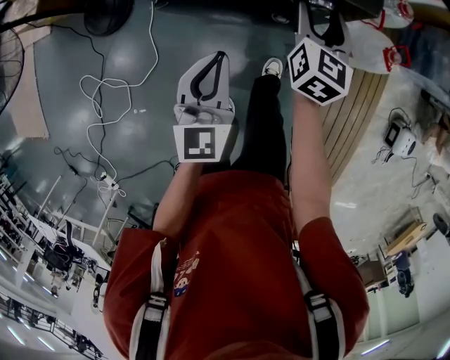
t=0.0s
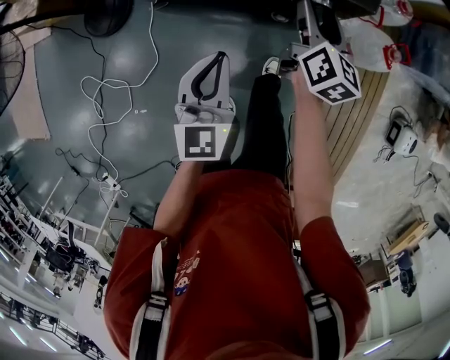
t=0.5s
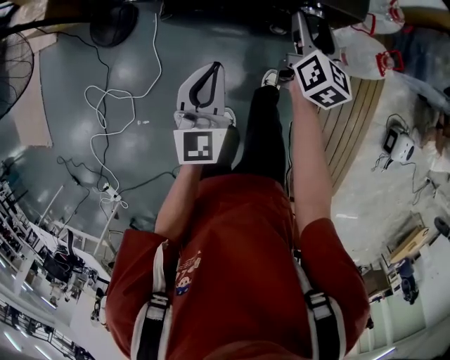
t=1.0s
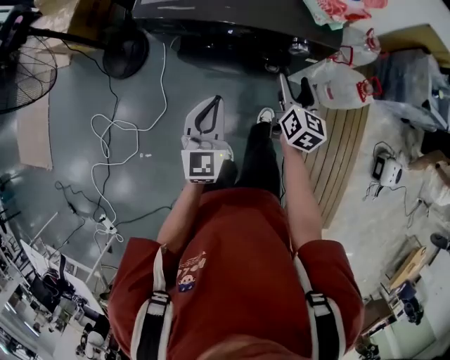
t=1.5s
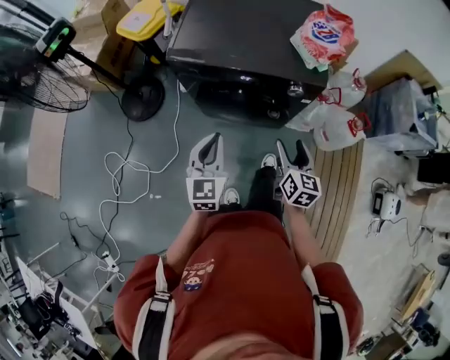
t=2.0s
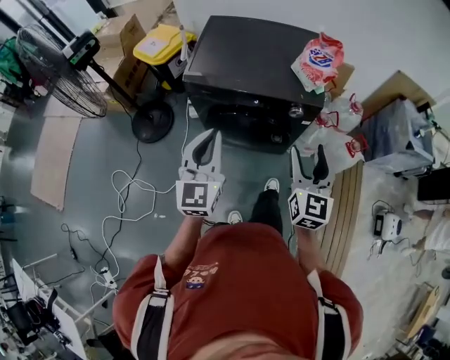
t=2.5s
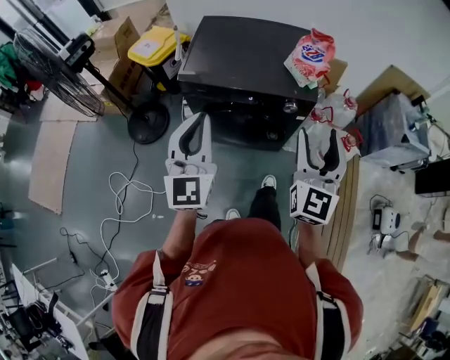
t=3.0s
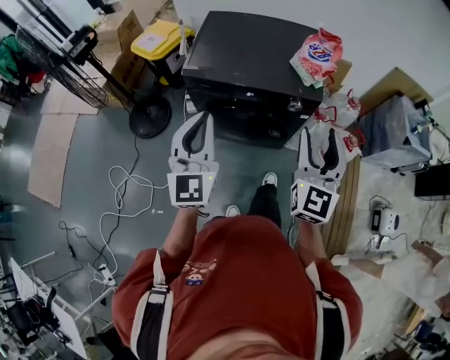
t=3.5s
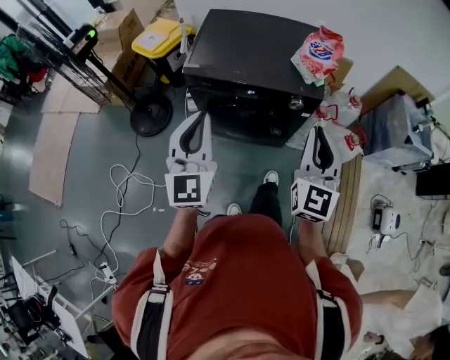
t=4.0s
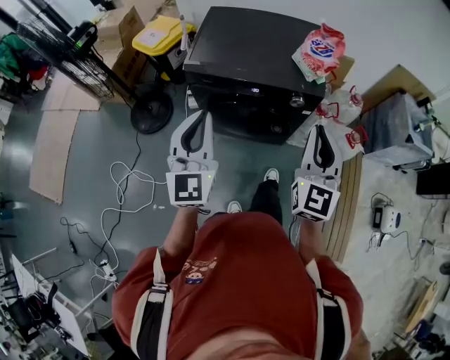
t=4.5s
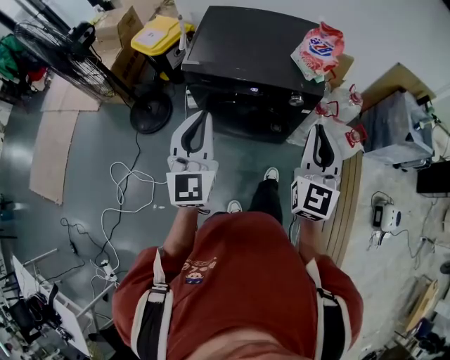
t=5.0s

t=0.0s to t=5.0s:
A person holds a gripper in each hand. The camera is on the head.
t=0.0s to t=2.5s: Both grippers travel together upward and backward, roughly 40 cm. The right gripper swivels approximately 20 degrees.
t=2.5s to t=5.0s: The right gripper shifts roughly 5 cm upward, and closes up.

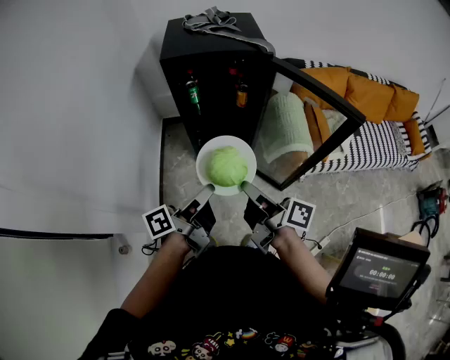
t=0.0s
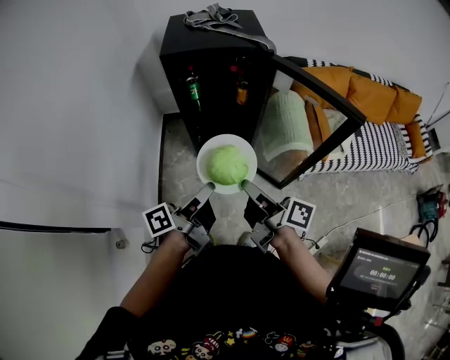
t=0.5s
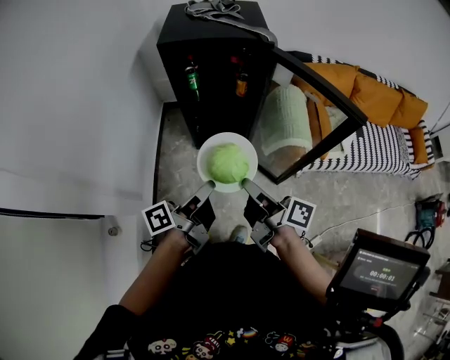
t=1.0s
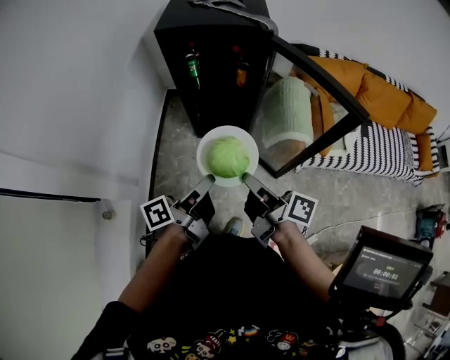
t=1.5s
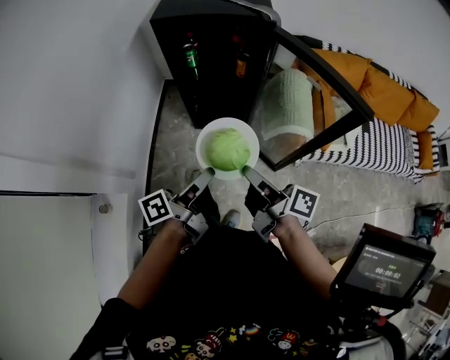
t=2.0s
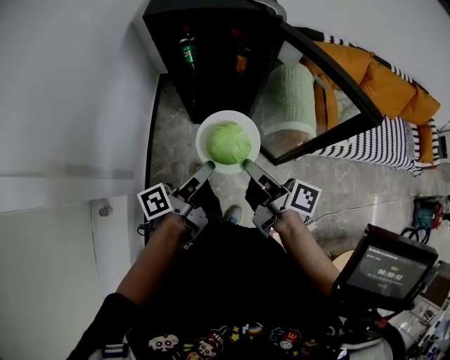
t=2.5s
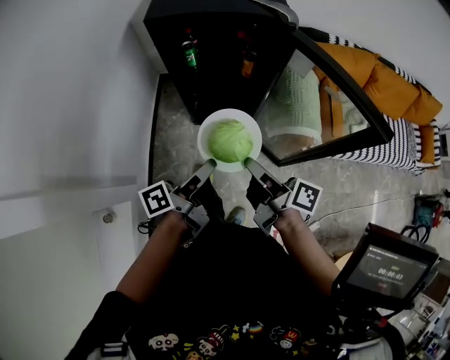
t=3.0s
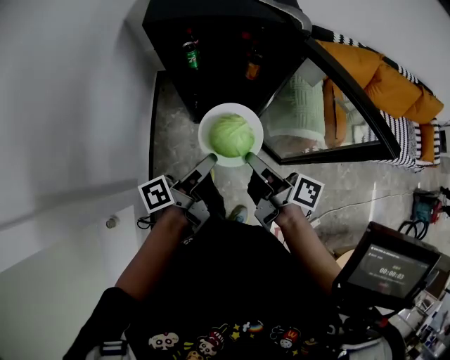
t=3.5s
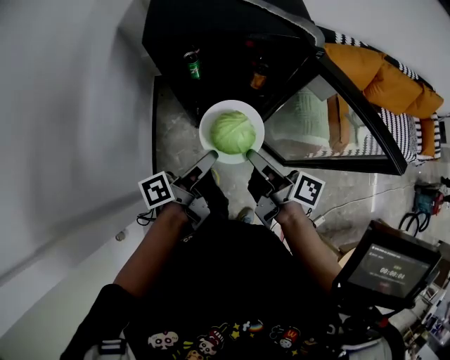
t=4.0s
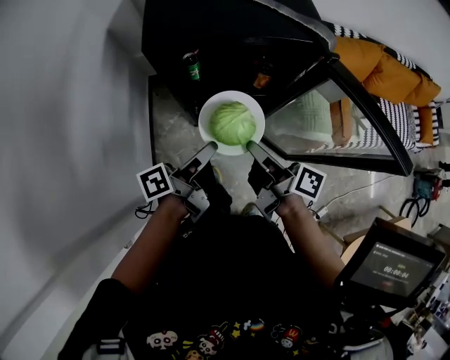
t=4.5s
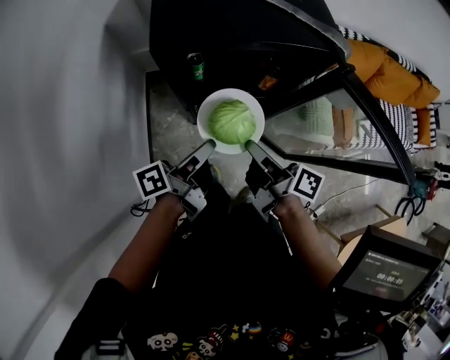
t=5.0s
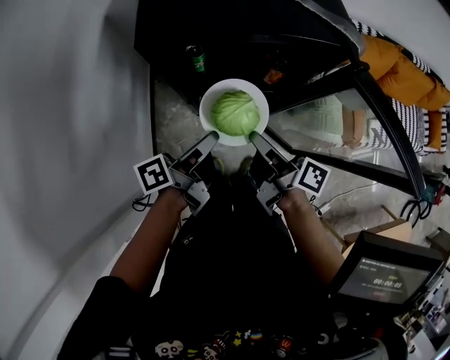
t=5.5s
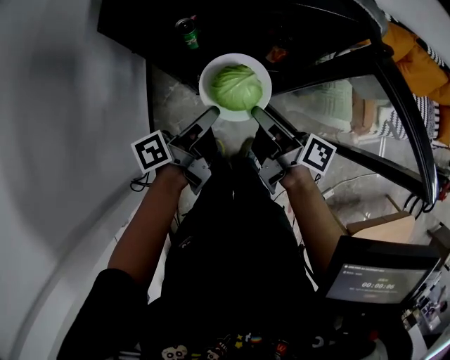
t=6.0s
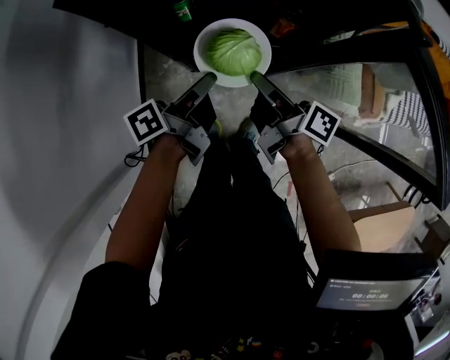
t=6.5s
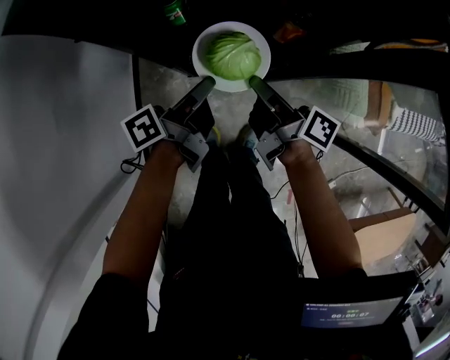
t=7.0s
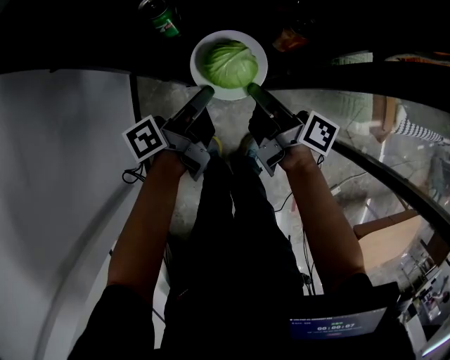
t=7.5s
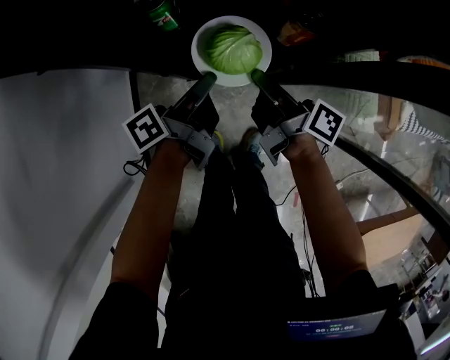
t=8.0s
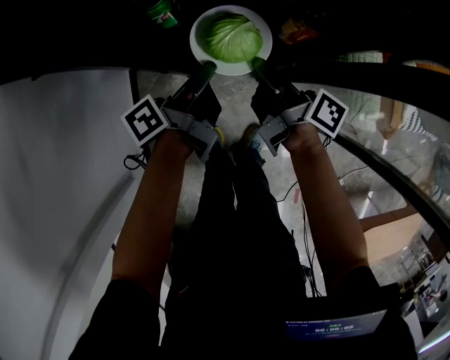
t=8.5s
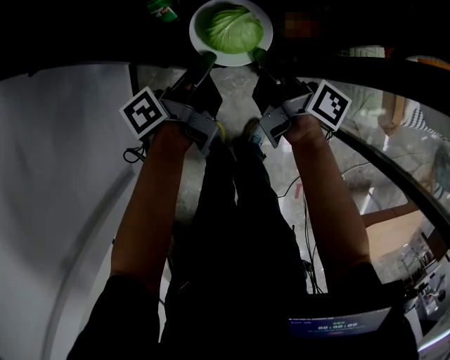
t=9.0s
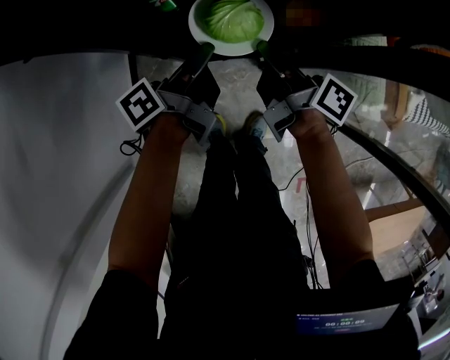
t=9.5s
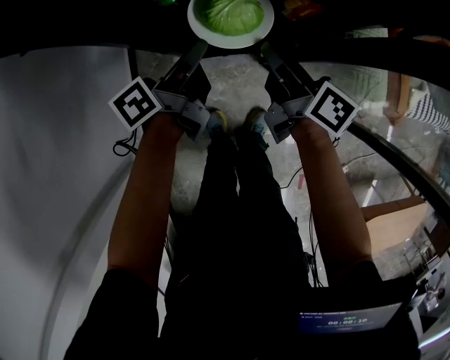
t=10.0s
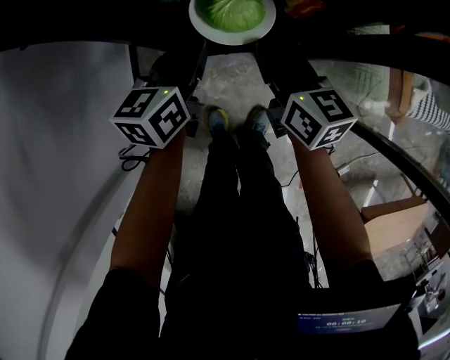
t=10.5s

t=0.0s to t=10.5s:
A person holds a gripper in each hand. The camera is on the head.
t=0.0s to t=2.0s: The right gripper shifts by some 10 cm.
t=8.5s to t=10.5s: The right gripper rolls counterclockwise, seen from behind, by about 60 degrees.

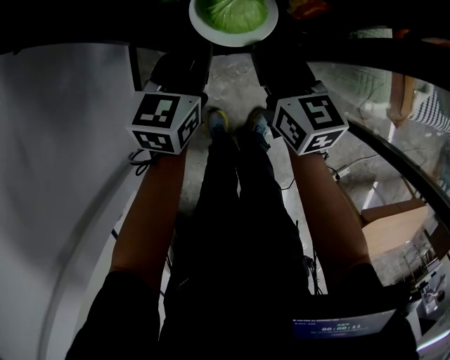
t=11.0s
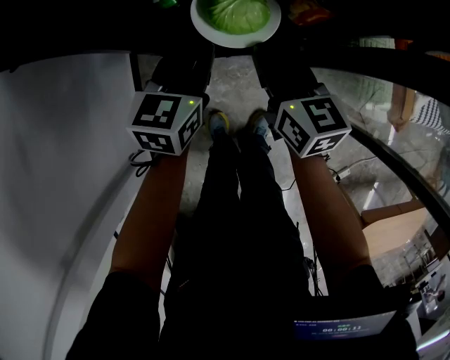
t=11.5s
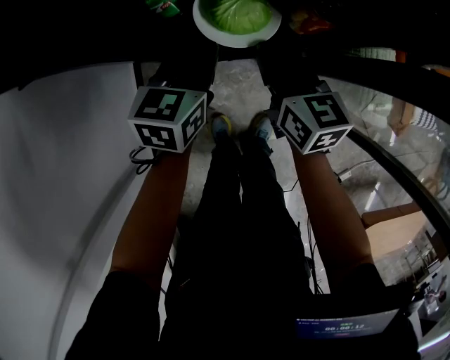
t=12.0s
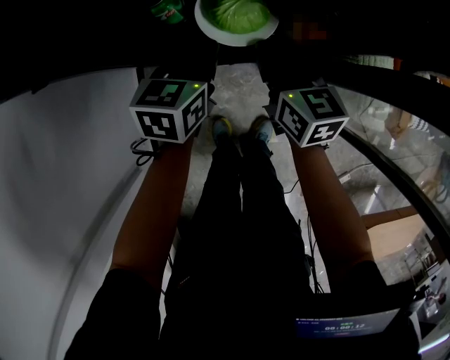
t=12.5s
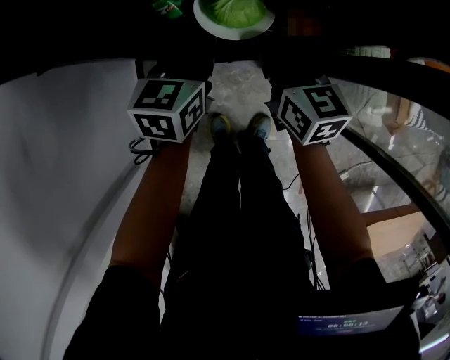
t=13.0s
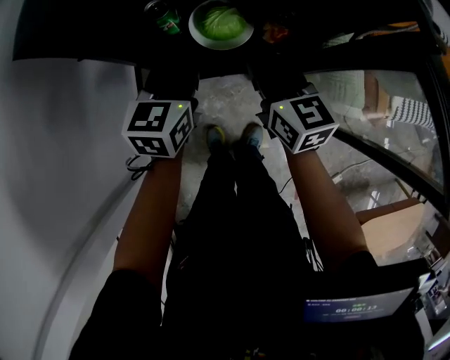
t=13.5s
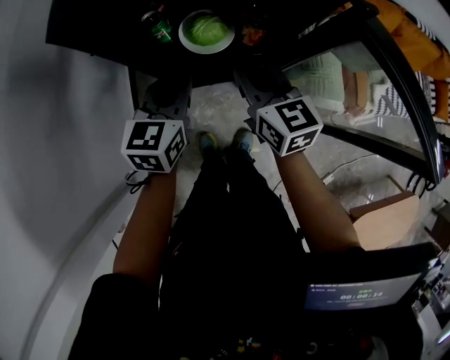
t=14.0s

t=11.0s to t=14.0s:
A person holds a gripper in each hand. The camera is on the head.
t=11.0s to t=12.5s: The right gripper moves about 5 cm.
t=12.5s to t=14.0s: The right gripper heads upward, covering roughly 15 cm.

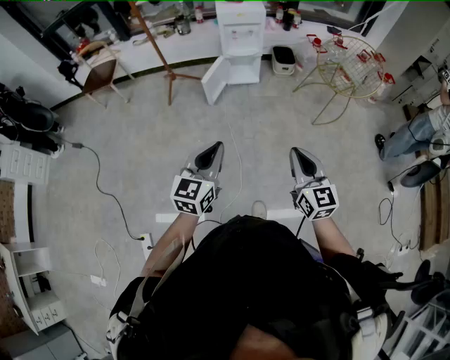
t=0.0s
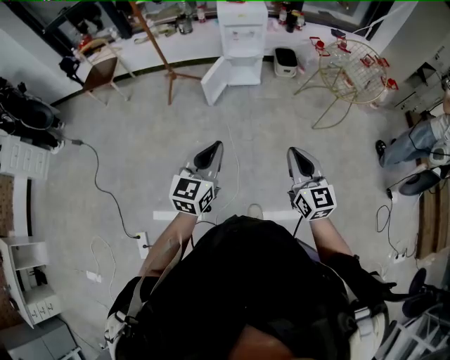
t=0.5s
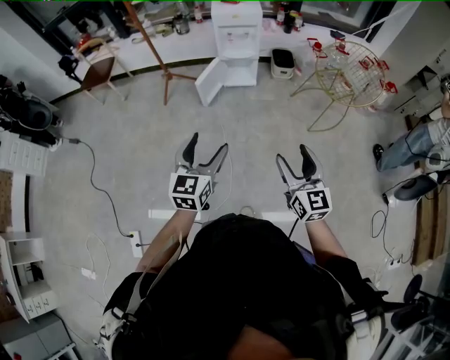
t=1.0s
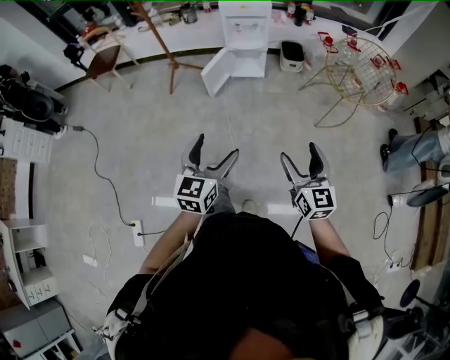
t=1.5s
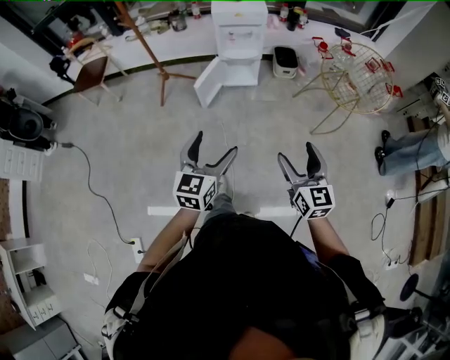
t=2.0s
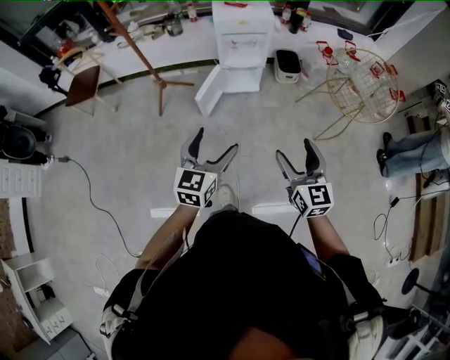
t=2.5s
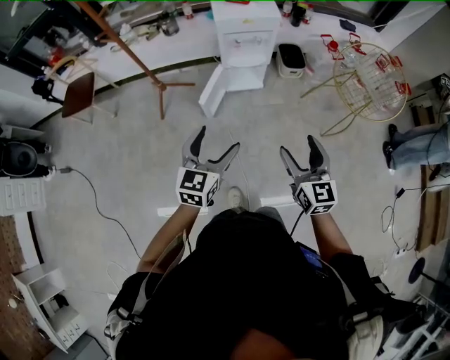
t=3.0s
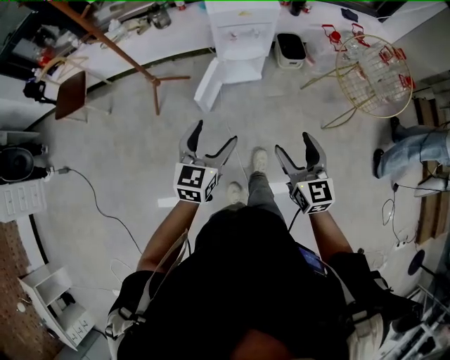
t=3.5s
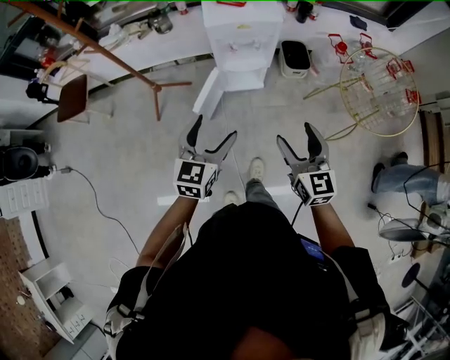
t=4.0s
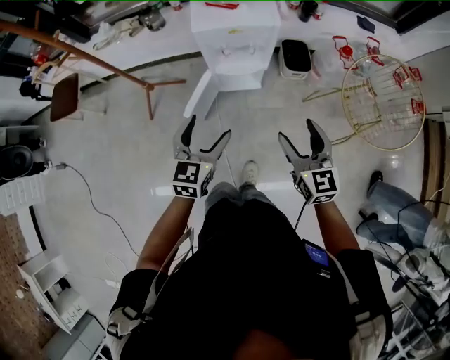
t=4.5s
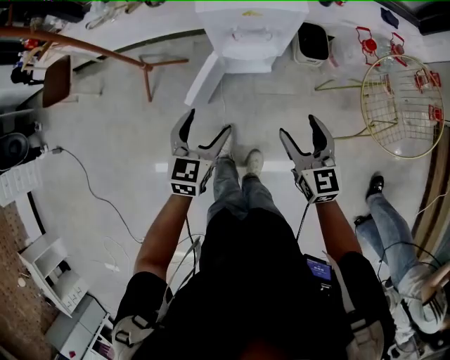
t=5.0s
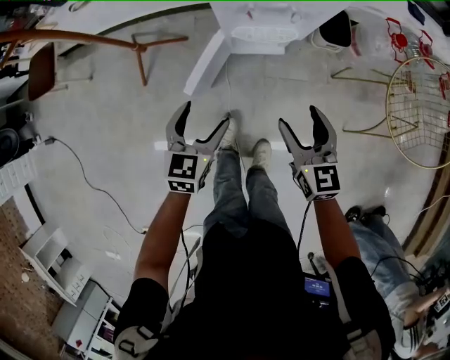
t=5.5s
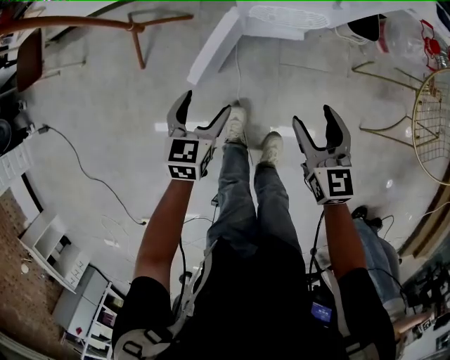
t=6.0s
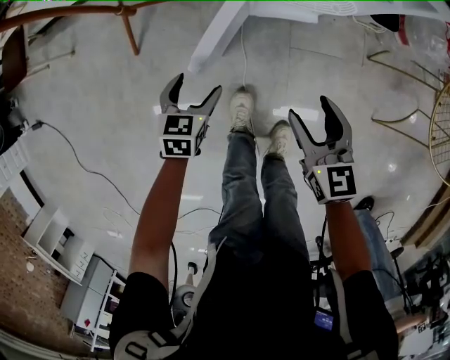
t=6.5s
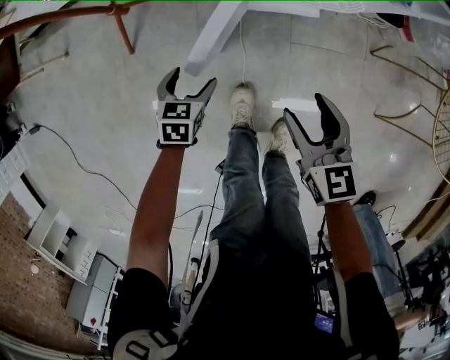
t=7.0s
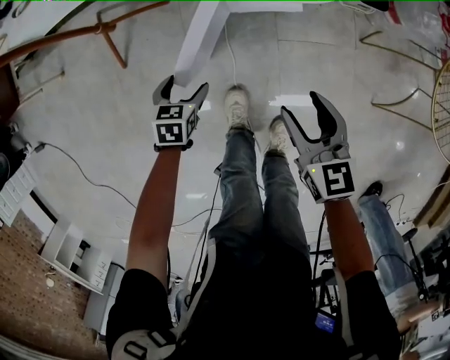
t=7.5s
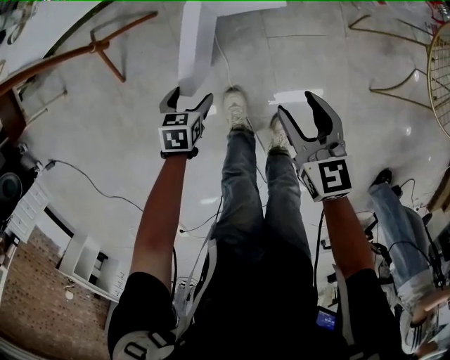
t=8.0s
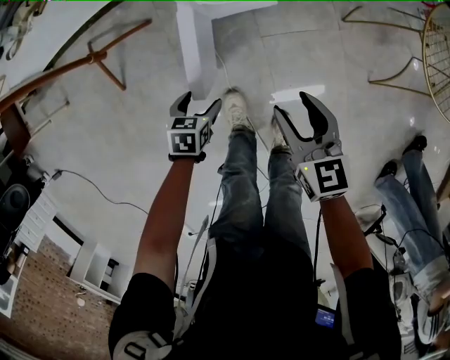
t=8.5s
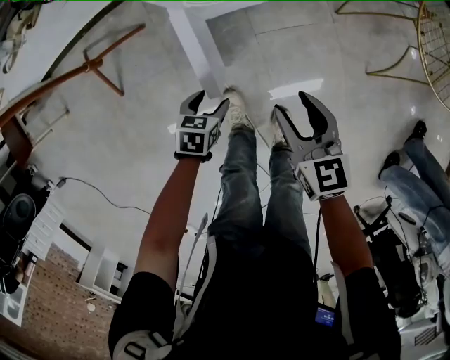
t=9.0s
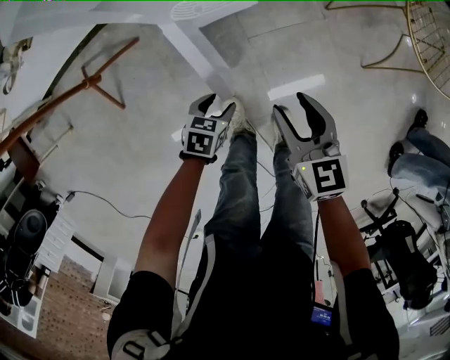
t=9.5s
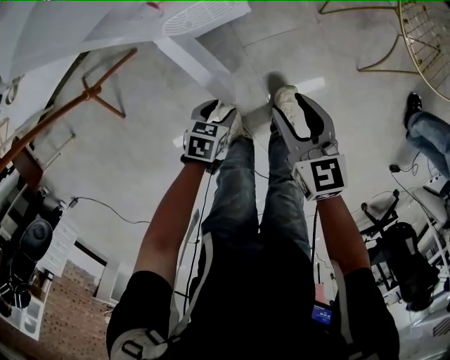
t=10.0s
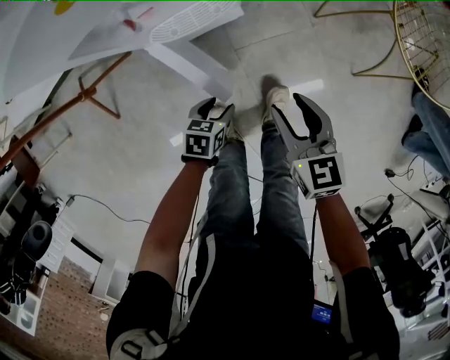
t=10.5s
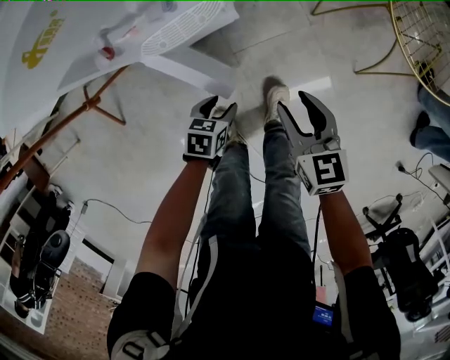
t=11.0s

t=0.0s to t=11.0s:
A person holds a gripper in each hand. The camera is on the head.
t=0.0s to t=2.0s: Both grippers travel together forward, roughly 15 cm. The right gripper opens. The left gripper opens its fingers.
t=2.0s to t=3.5s: The right gripper moves forward and to the left, about 25 cm, while the left gripper moves forward, about 25 cm.
t=3.5s to t=5.5s: The right gripper goes approximately 35 cm forward and downward. Meanwhile the left gripper is displaced downward and forward by about 35 cm.
t=5.5s to t=7.5s: The left gripper shifts some 30 cm downward, and swivels some 30 degrees; the right gripper shifts some 20 cm downward.
t=7.5s to t=9.0s: The right gripper moves about 5 cm. Meanwhile the left gripper shifts approximately 10 cm to the right.
t=9.0s to t=11.0s: Both grippers travel together to the right and forward, approximately 15 cm.
